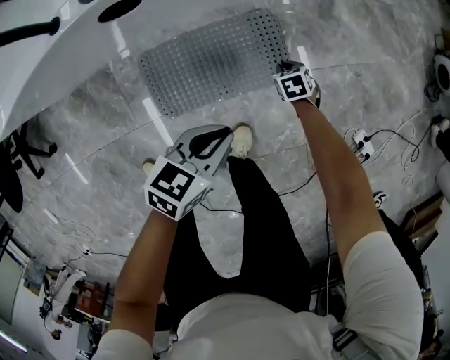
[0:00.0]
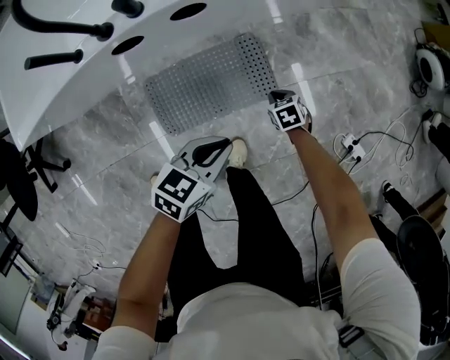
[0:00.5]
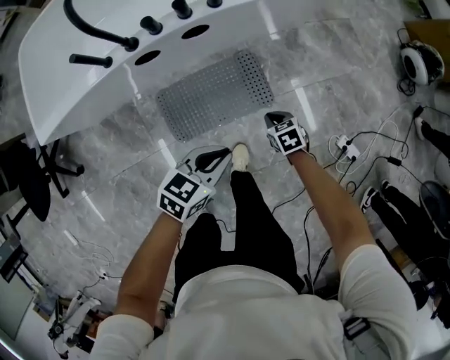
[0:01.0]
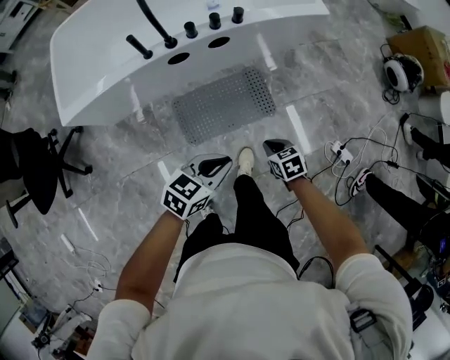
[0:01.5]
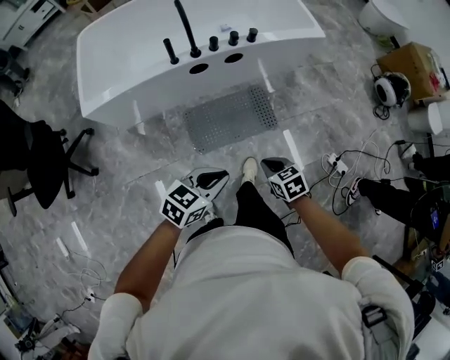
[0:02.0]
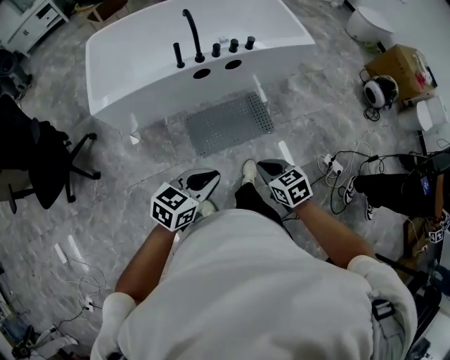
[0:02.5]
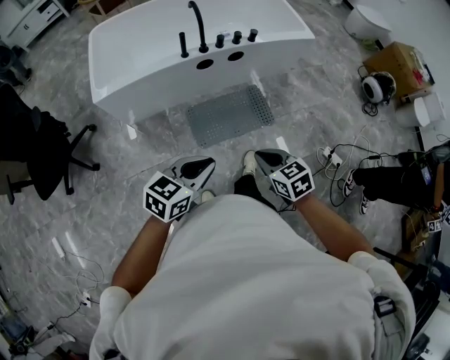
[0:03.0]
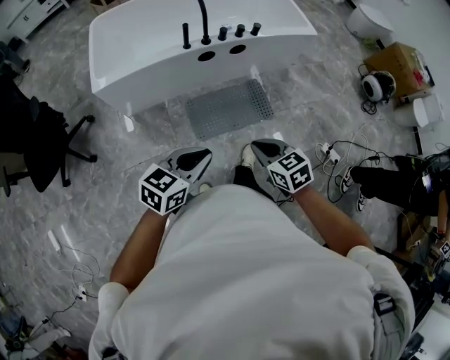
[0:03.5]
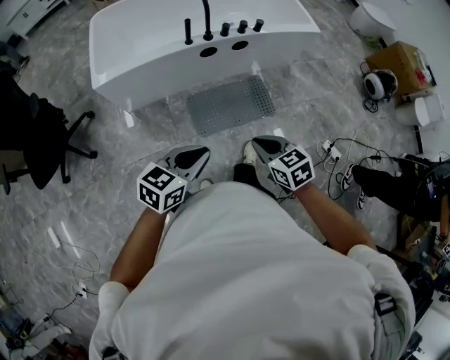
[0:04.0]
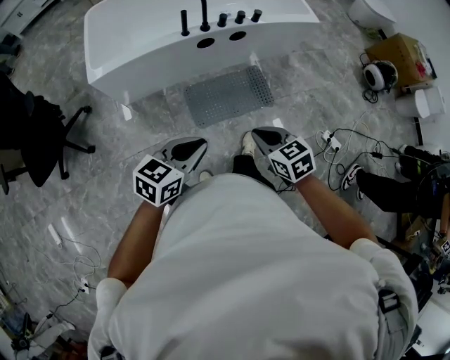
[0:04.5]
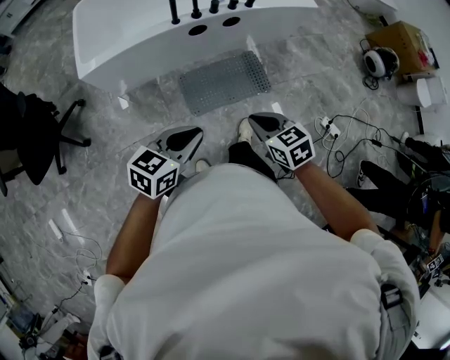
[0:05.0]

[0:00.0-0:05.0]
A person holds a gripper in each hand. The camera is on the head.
0:00.0 to 0:02.5: The grippers both shift upward by some 50 cm. The right gripper swivels roughly 30 degrees.
0:02.5 to 0:05.0: The left gripper heads to the left, covering approximately 5 cm, while the right gripper moves roughly 5 cm.

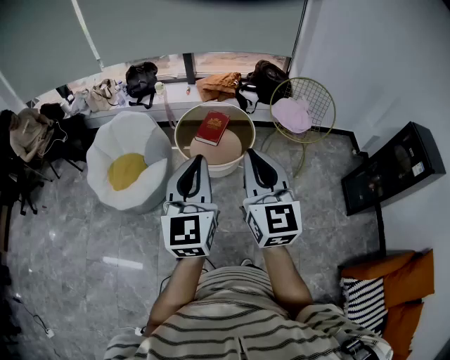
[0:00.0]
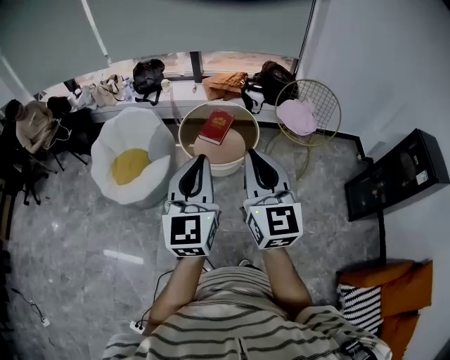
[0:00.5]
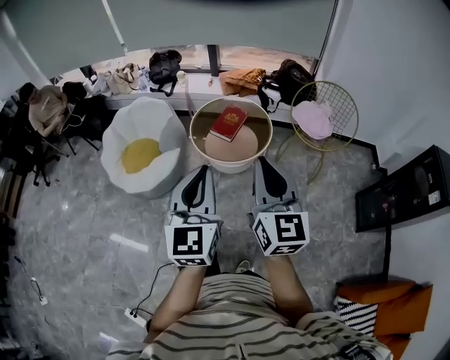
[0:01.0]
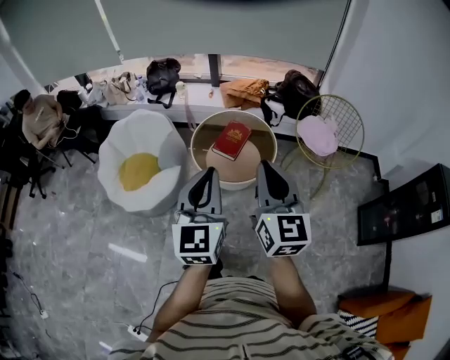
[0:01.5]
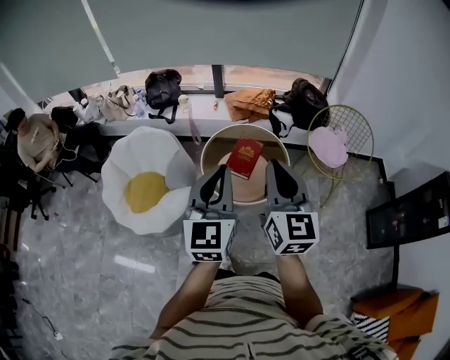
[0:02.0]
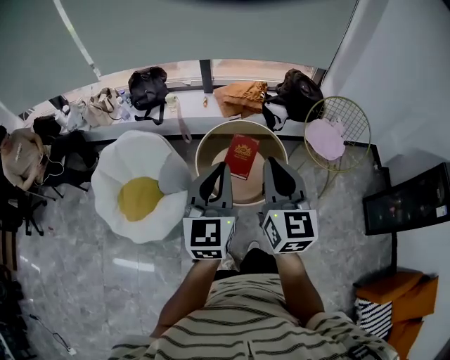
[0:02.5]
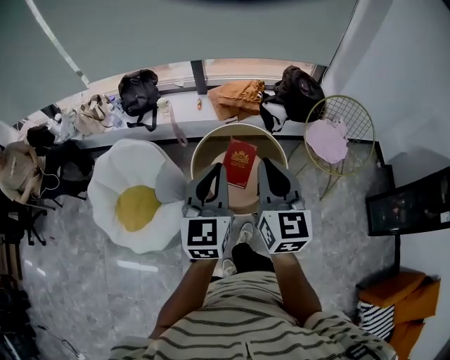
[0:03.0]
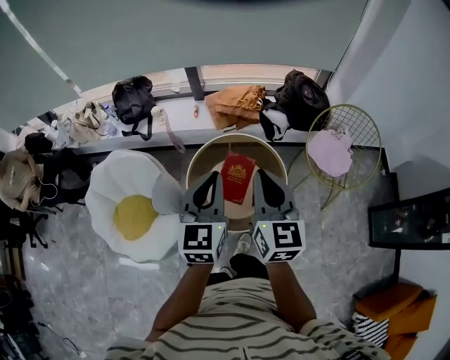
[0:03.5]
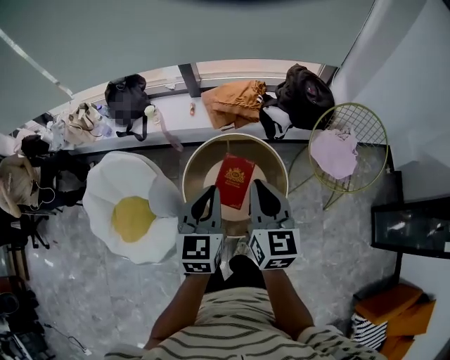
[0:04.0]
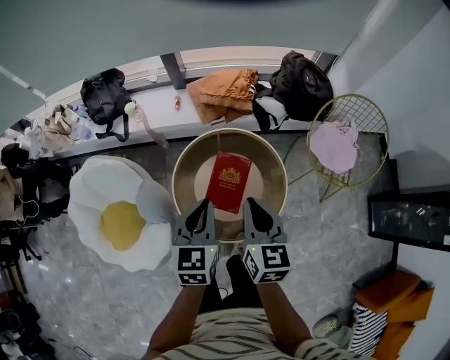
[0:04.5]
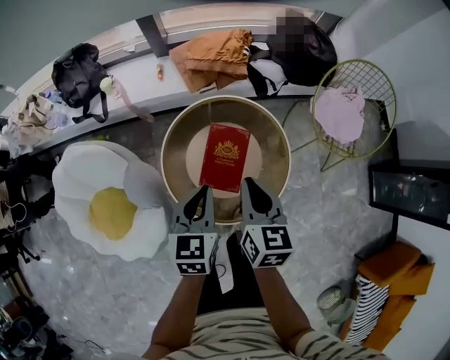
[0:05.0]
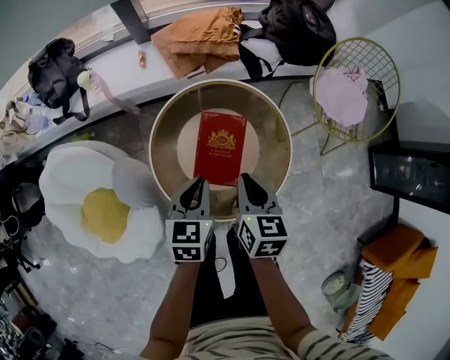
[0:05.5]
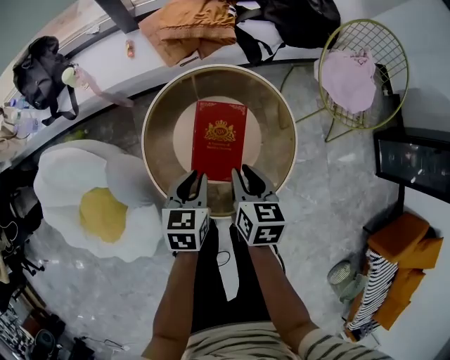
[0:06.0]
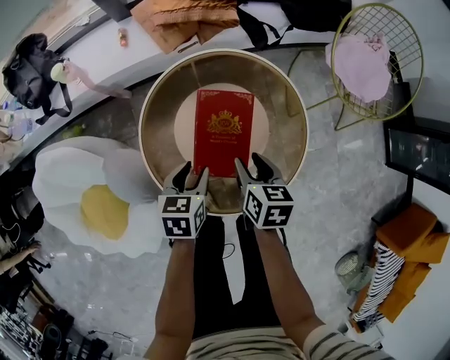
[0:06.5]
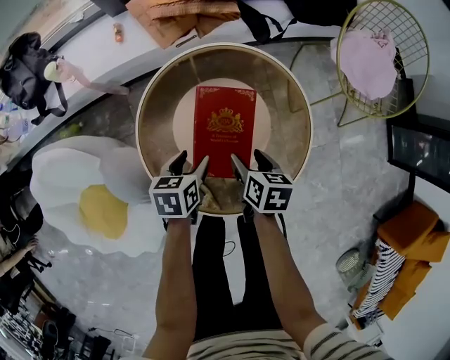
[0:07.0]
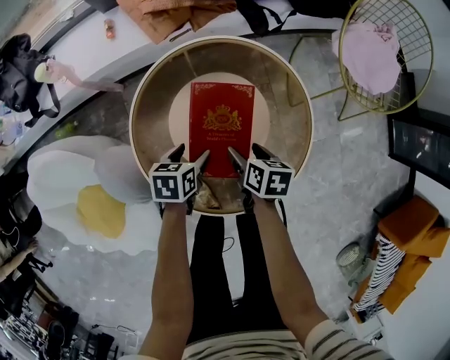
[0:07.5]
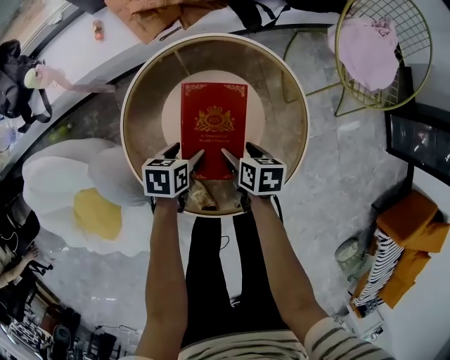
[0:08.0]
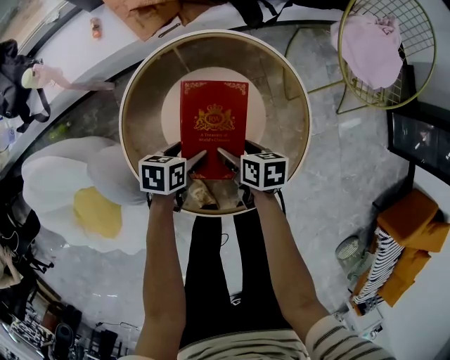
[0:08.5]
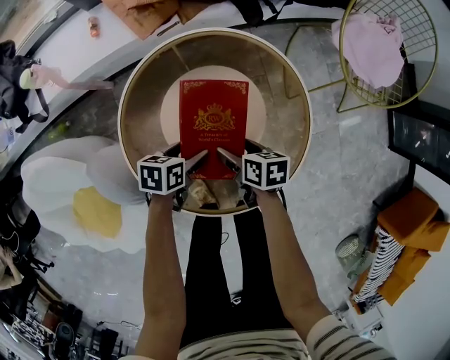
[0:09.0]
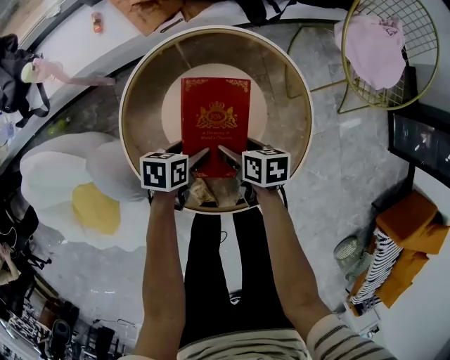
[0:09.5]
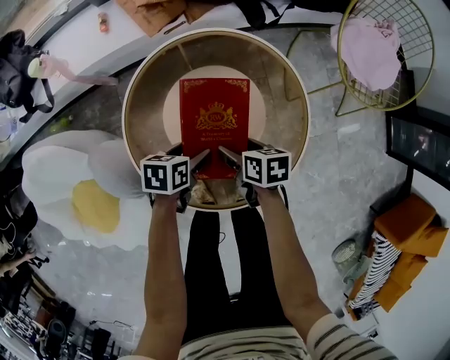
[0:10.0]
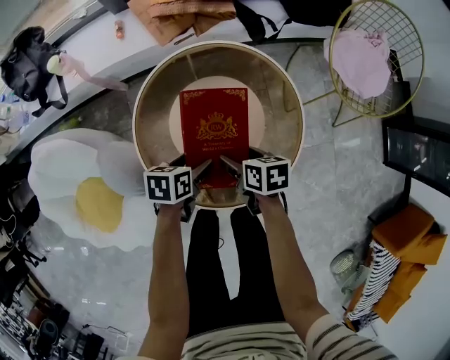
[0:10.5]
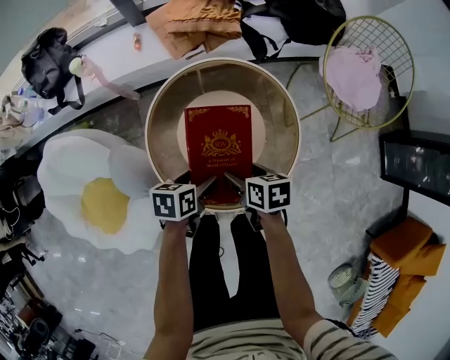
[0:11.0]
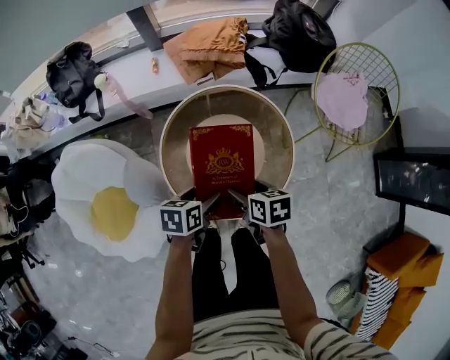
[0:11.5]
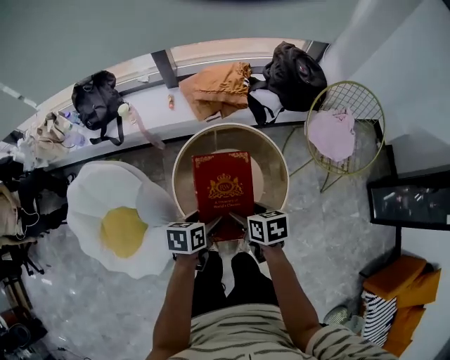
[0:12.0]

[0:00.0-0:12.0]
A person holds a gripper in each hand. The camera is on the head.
0:00.0 to 0:02.0: The two grippers go some 25 cm forward.
0:02.0 to 0:04.0: Both grippers travel together forward and downward, some 35 cm. The left gripper rotates roughly 20 degrees.
0:04.0 to 0:06.0: Both grippers move downward, approximately 40 cm. The left gripper swivels roughly 30 degrees. The right gripper tips its fingers downward by about 30 degrees.
0:06.0 to 0:08.0: The two grippers go roughly 20 cm downward. The left gripper turns by roughly 30 degrees, and opens; the right gripper rotates roughly 20 degrees, and opens.
0:08.0 to 0:10.0: There are only small adjustments of the grippers.
0:10.0 to 0:12.0: The grippers both shift upward by about 30 cm.

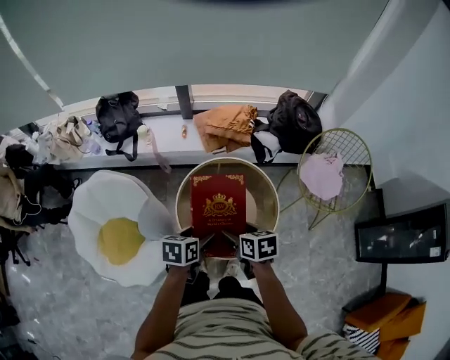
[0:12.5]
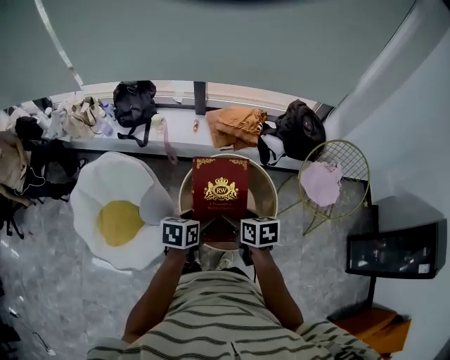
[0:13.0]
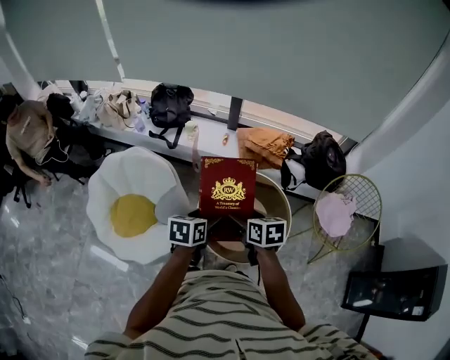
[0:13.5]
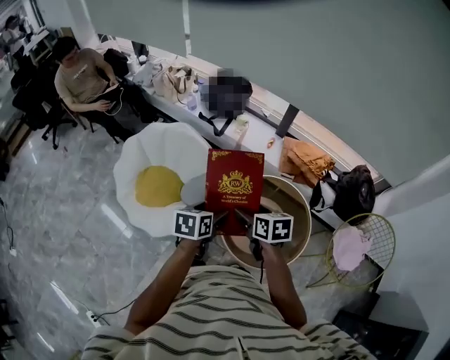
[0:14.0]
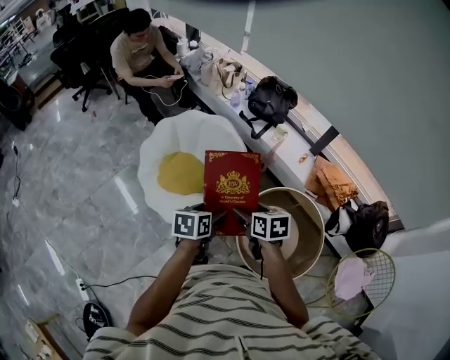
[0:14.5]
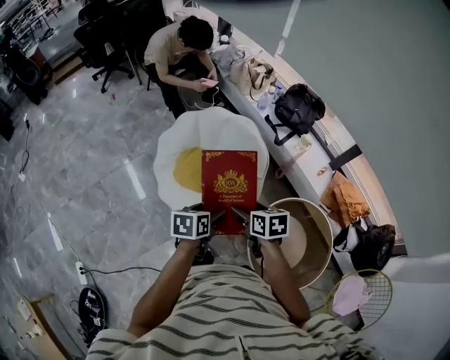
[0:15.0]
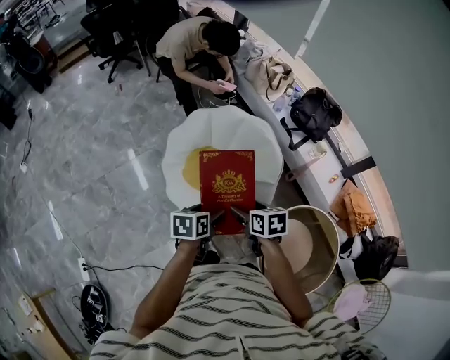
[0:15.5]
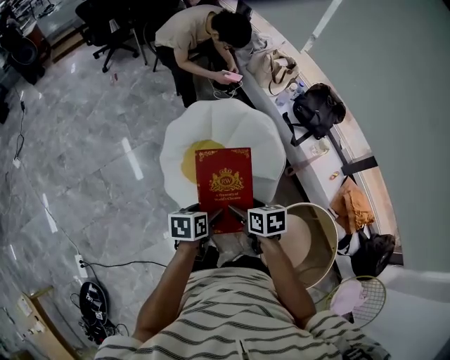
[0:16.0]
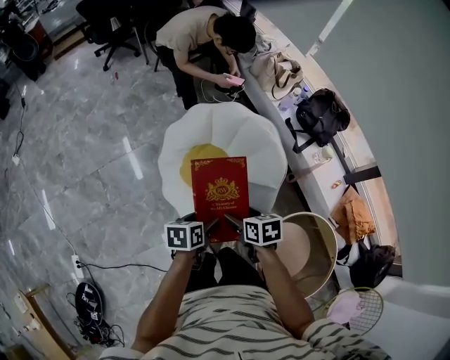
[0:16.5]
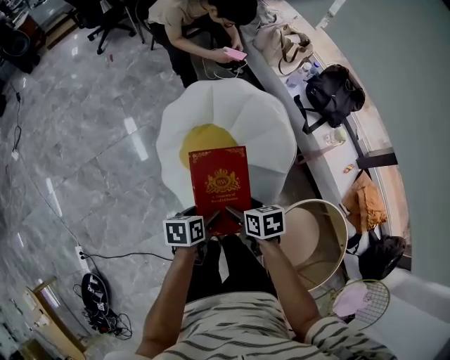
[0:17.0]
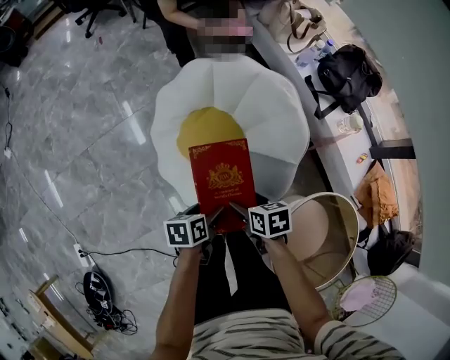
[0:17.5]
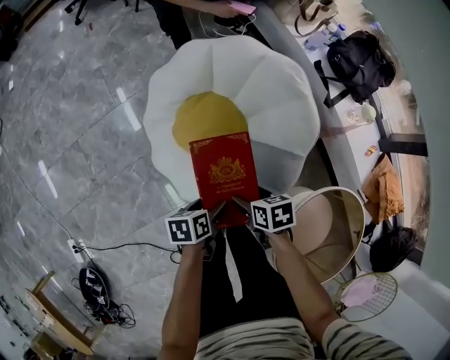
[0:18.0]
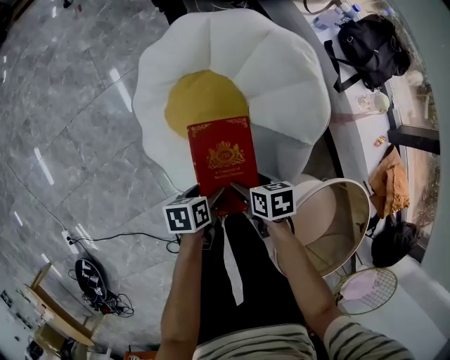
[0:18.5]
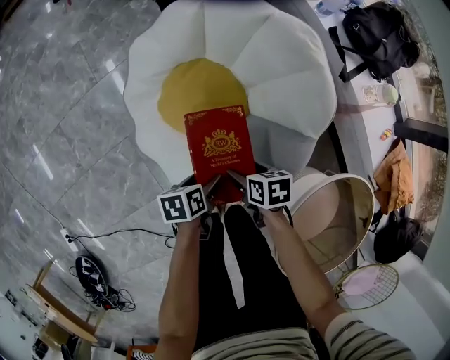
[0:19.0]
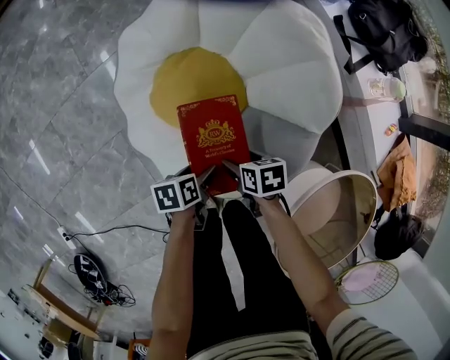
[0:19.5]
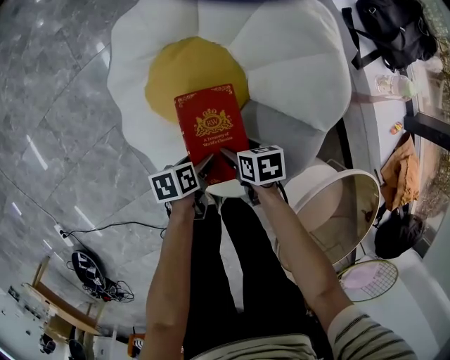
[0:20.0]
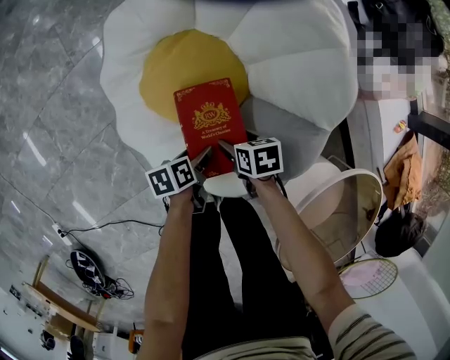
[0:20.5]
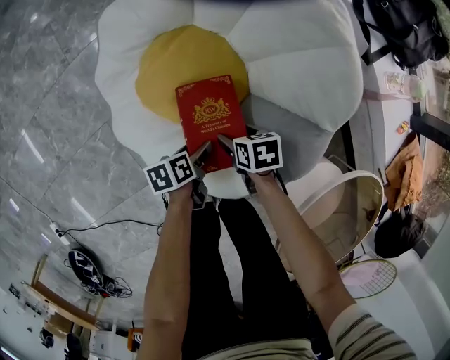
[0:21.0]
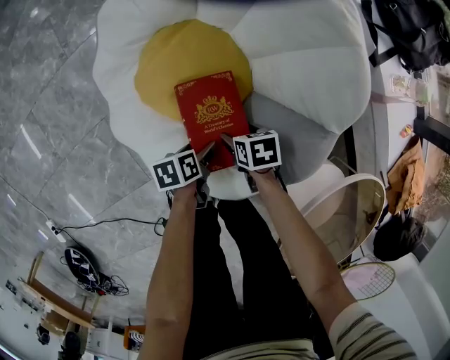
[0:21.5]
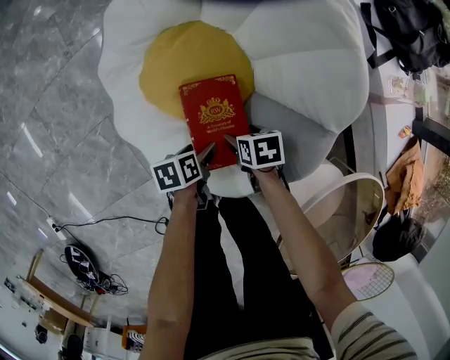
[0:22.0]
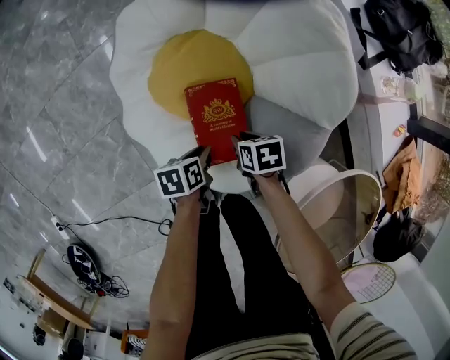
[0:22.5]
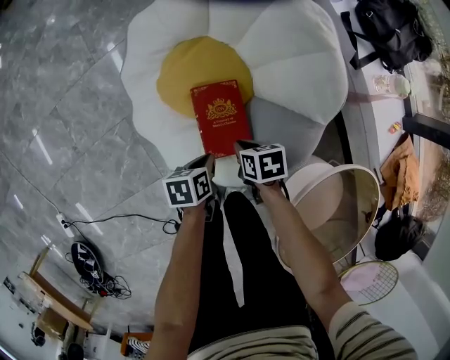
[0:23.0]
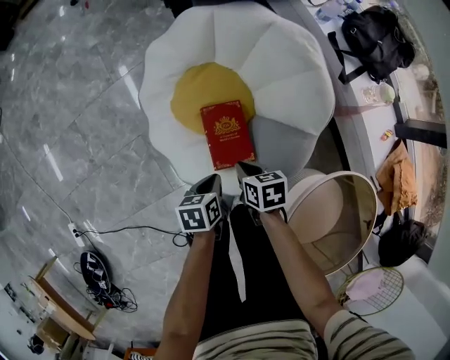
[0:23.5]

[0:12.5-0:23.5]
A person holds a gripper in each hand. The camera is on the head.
0:12.5 to 0:14.5: The right gripper changes place by roughly 30 cm, and swivels roughly 50 degrees. Meanwhile the left gripper changes place by roughly 30 cm, and rotates about 50 degrees.
0:14.5 to 0:16.0: Both grippers travel together to the left and forward, some 25 cm.
0:16.0 to 0:18.0: Both grippers move downward, some 25 cm.
0:18.0 to 0:20.0: The two grippers go some 20 cm downward.
0:20.0 to 0:21.5: Both grippers travel together downward, some 10 cm.
0:21.5 to 0:23.5: The two grippers go some 20 cm upward. The left gripper closes its fingers. The right gripper closes.
